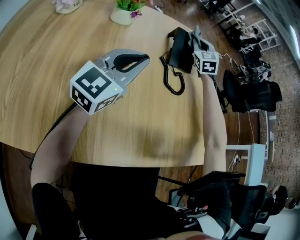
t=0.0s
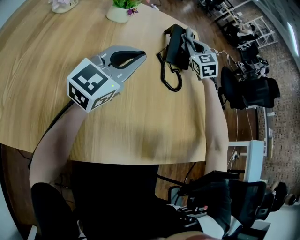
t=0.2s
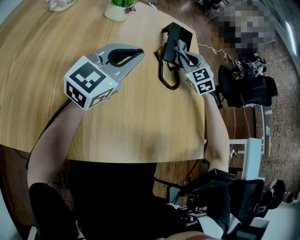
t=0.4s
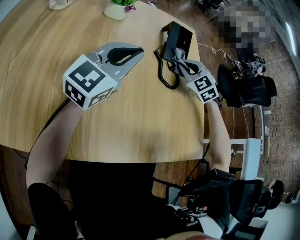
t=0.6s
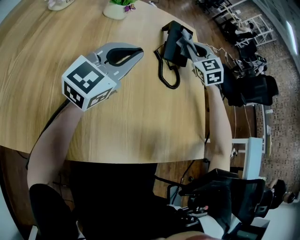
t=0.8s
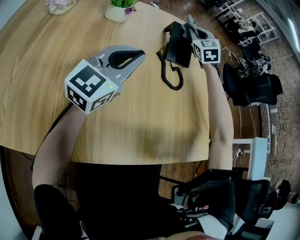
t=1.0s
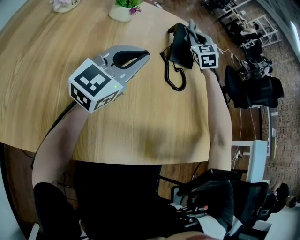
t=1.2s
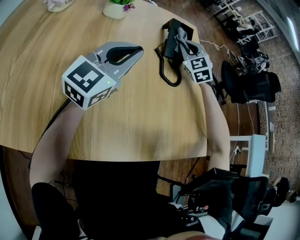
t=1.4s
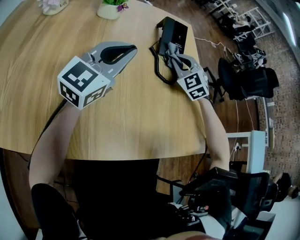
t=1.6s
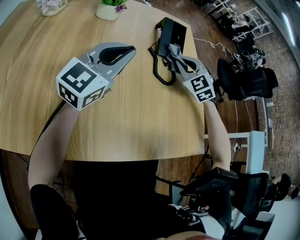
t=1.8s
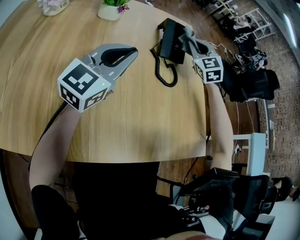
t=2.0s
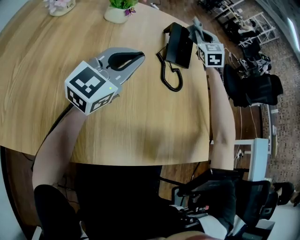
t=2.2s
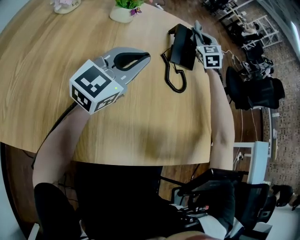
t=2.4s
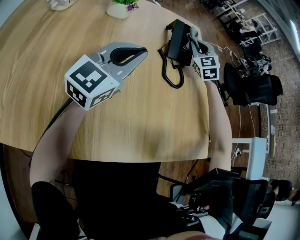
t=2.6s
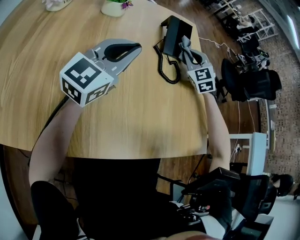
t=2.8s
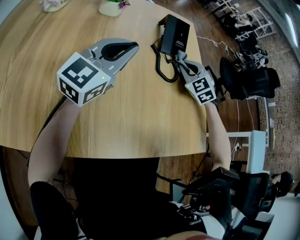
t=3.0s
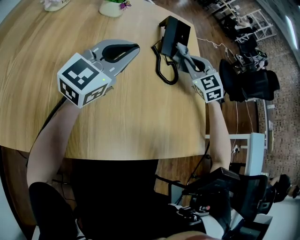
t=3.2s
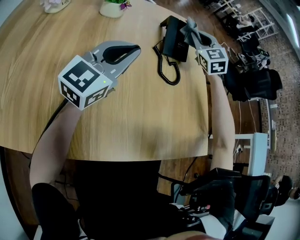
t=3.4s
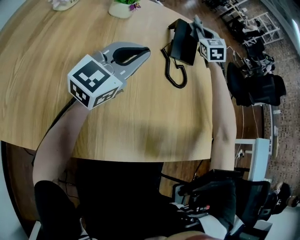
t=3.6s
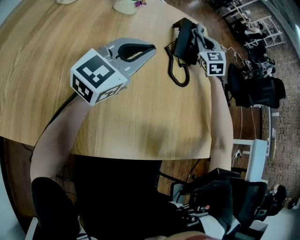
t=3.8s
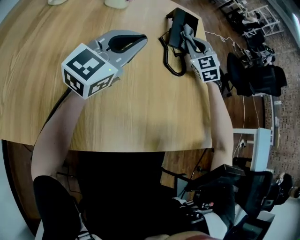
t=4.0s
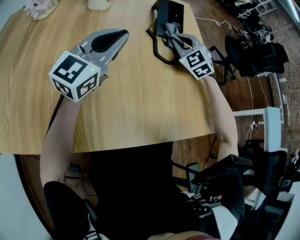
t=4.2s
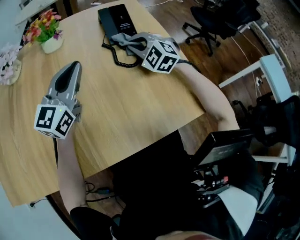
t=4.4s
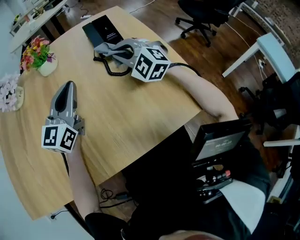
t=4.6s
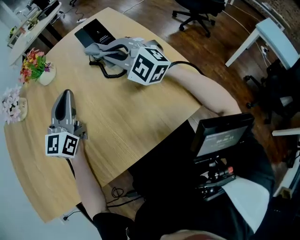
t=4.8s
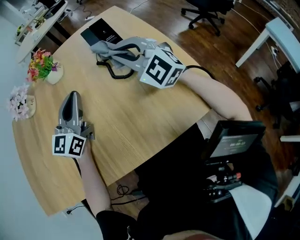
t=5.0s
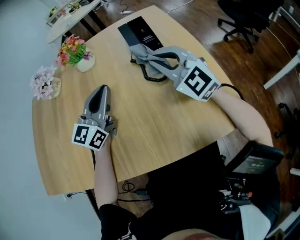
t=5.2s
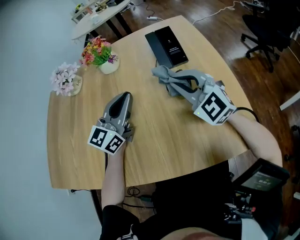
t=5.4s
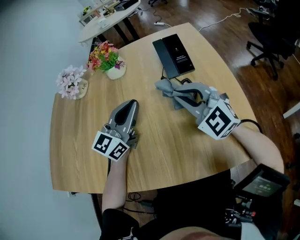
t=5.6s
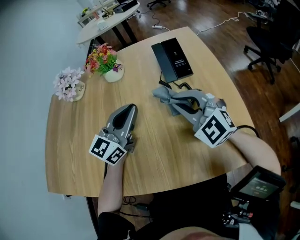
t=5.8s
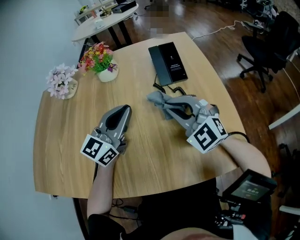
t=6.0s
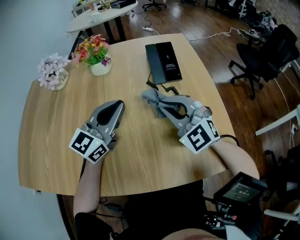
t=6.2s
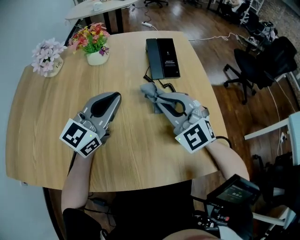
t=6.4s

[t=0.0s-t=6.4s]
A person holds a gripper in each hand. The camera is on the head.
t=0.0s to t=1.6s: The right gripper moves forward and backward over some 15 cm, changing direction 2 times, and swivels roughly 30 degrees.
t=1.6s to t=3.2s: The right gripper travels forward and back again, some 15 cm each way.
t=3.2s to t=4.8s: The right gripper is displaced to the left by about 5 cm, reaches approximately 15 cm forward, then returns, and turns by approximately 20 degrees.
t=4.8s to t=6.4s: The right gripper travels backward by about 5 cm.

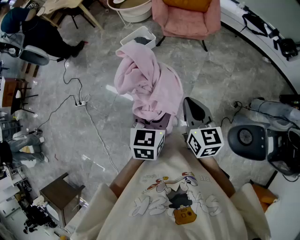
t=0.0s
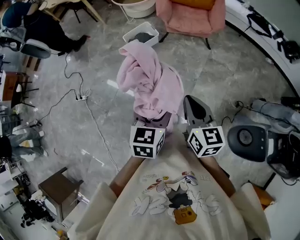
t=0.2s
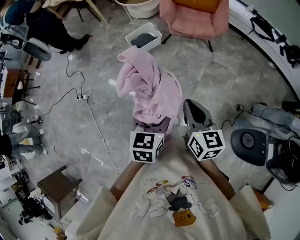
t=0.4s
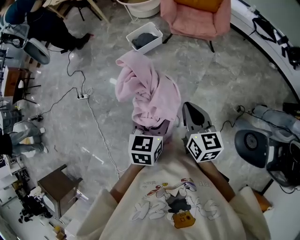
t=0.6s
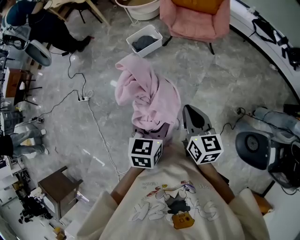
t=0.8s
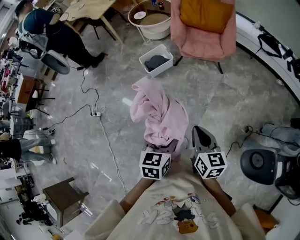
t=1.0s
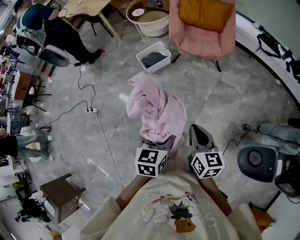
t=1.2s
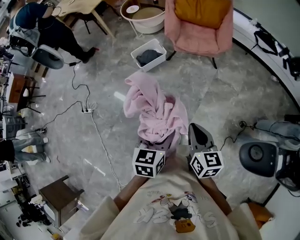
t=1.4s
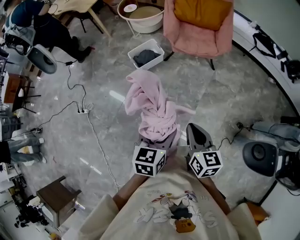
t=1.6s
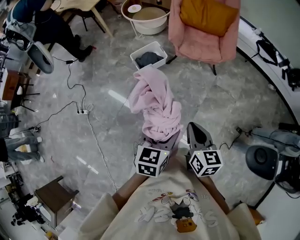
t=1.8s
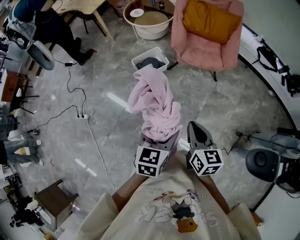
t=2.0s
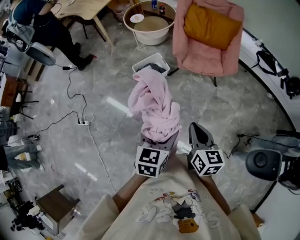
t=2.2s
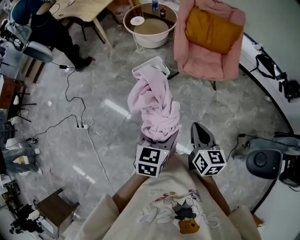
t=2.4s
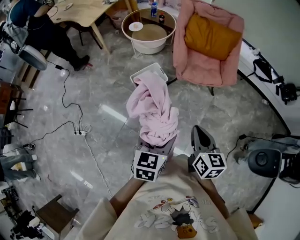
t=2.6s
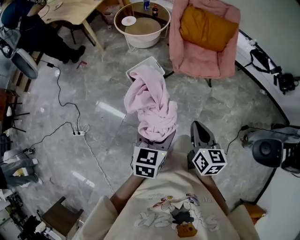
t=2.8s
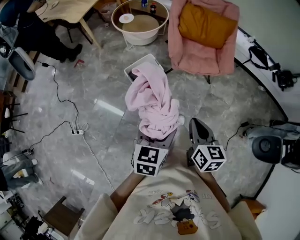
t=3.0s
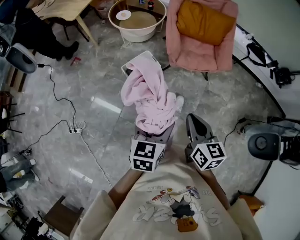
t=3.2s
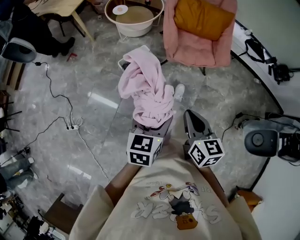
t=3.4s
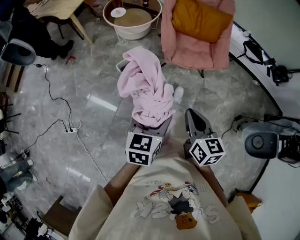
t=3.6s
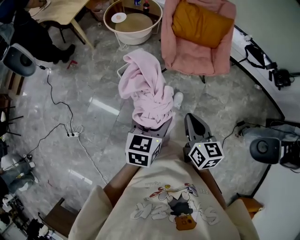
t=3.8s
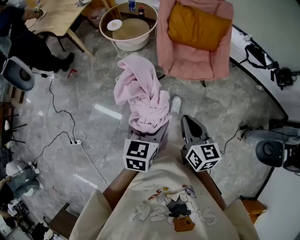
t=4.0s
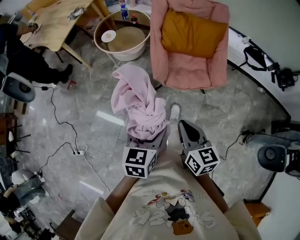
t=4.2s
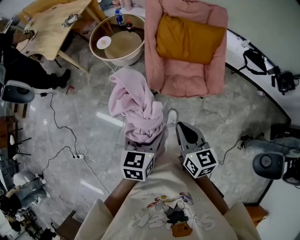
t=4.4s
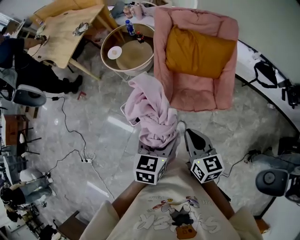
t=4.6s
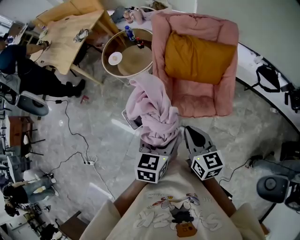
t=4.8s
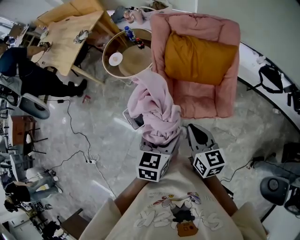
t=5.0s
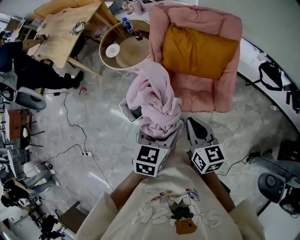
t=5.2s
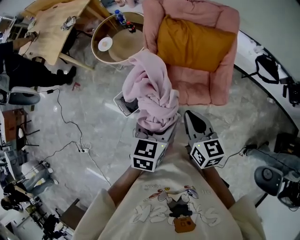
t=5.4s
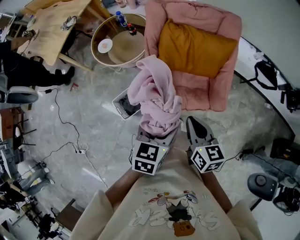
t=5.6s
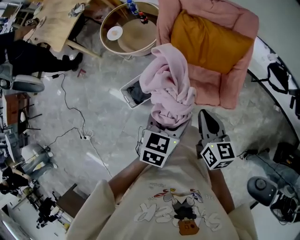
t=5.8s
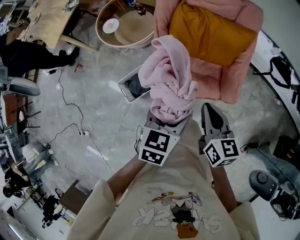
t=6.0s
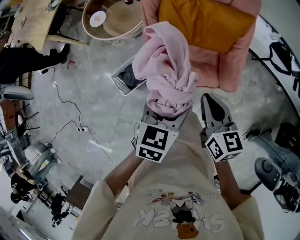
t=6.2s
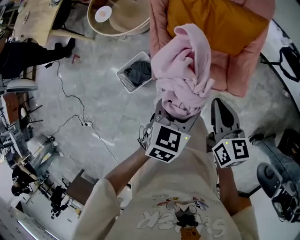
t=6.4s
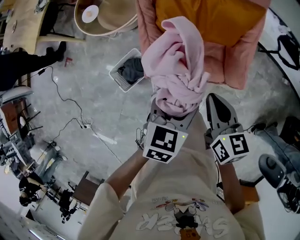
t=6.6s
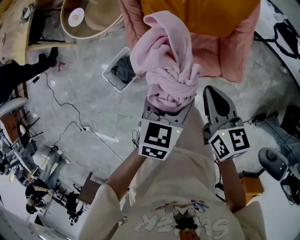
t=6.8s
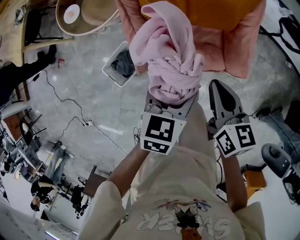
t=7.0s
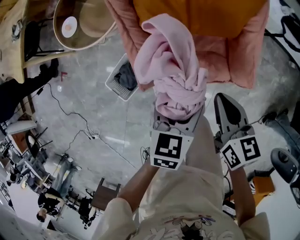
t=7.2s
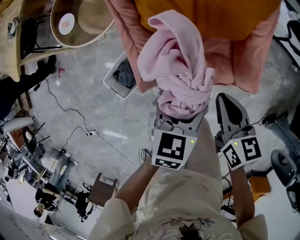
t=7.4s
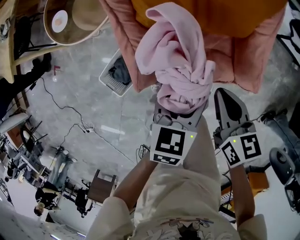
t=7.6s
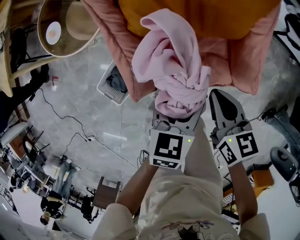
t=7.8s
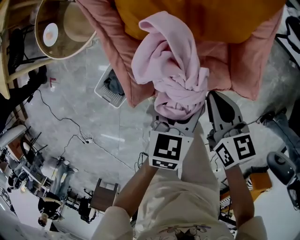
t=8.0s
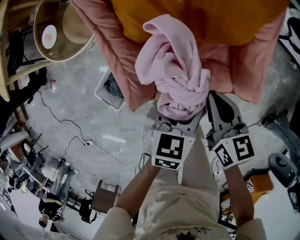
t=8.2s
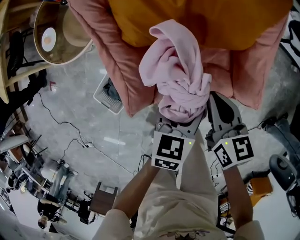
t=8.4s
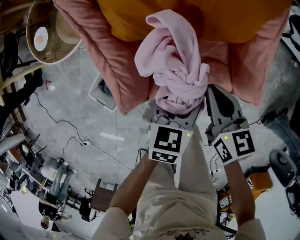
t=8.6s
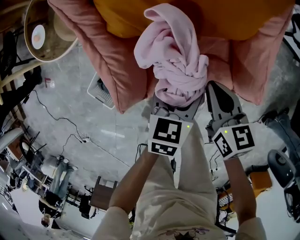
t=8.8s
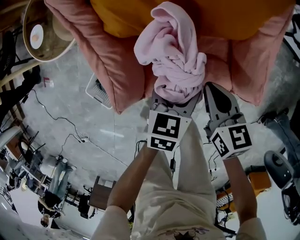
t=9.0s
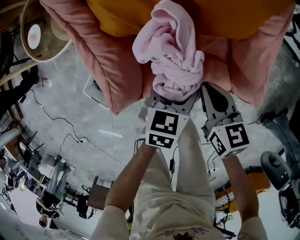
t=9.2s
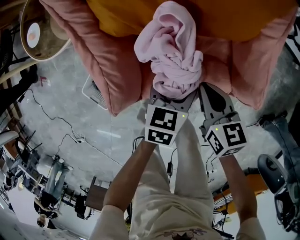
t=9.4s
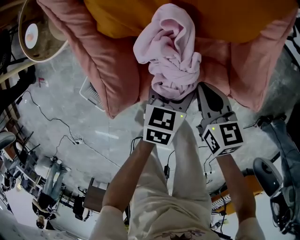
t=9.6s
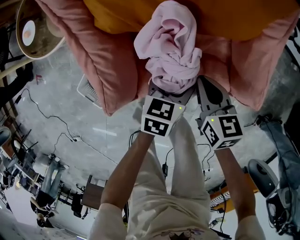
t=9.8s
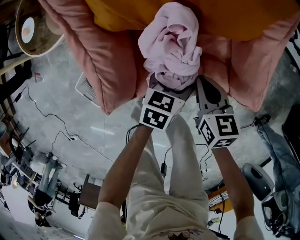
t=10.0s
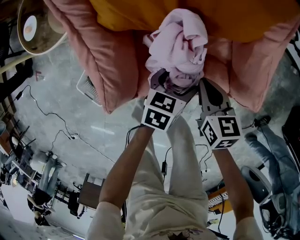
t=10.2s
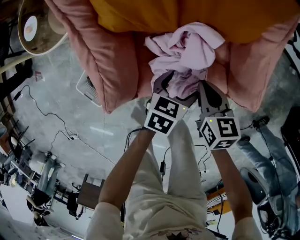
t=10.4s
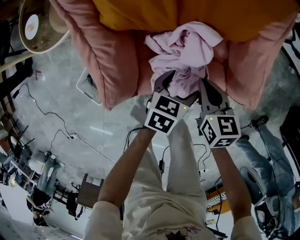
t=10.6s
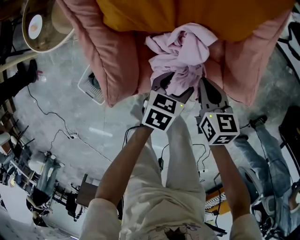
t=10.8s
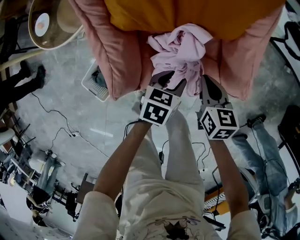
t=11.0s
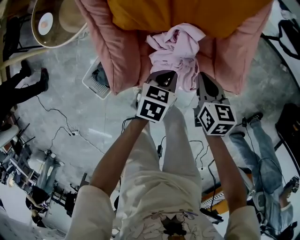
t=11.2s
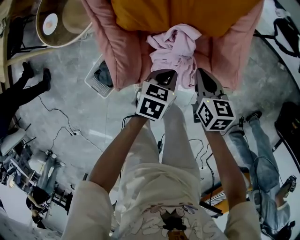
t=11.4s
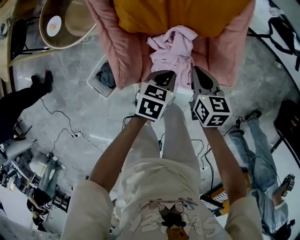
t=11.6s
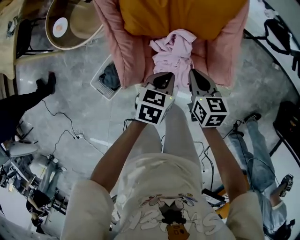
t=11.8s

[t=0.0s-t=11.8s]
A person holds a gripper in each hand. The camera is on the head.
t=0.0s to t=1.4s: The grippers make only small movements.
t=1.4s to t=3.0s: The grippers both shift forward and to the left by approximately 30 cm.
t=3.0s to t=4.4s: The grippers both shift forward by approximately 25 cm.
t=4.4s to t=6.0s: Both grippers move forward and to the right, some 25 cm.
t=6.0s to t=7.4s: Both grippers move downward and forward, about 25 cm.
t=7.4s to t=8.8s: Both grippers move downward, roughly 15 cm.
t=8.8s to t=10.4s: Both grippers move downward, approximately 10 cm.
t=10.4s to t=11.8s: The grippers both shift upward by approximately 20 cm. The left gripper closes.

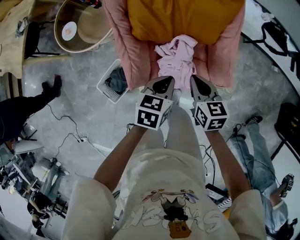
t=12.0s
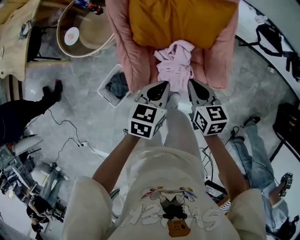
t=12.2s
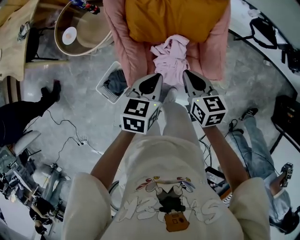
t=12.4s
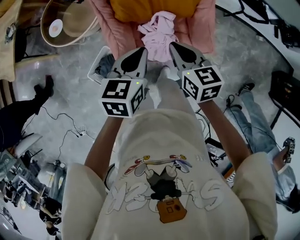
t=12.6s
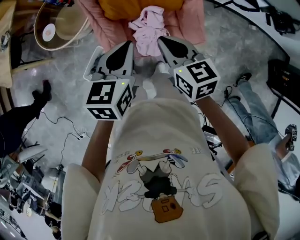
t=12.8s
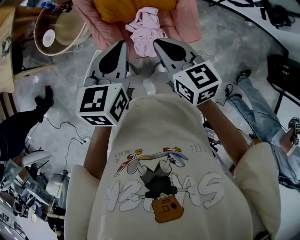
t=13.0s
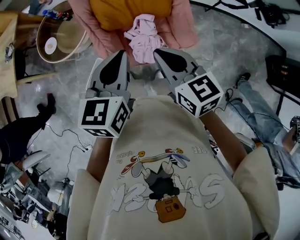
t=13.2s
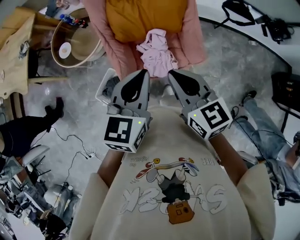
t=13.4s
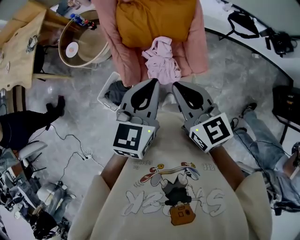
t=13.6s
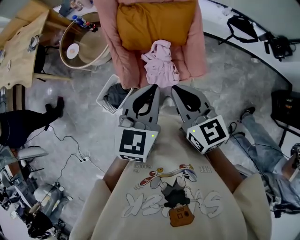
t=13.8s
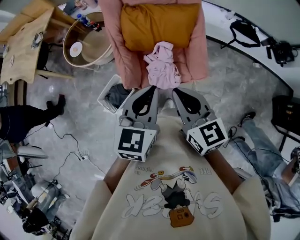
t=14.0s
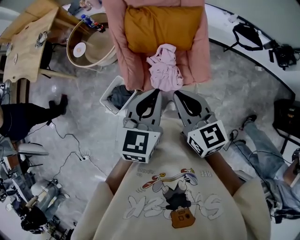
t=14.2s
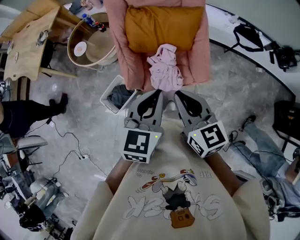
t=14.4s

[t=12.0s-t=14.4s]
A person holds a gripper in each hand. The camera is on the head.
t=12.0s to t=13.2s: Both grippers travel together upward, about 25 cm. The left gripper changes its angle by approximately 20 degrees.
t=13.2s to t=14.4s: The left gripper heads backward and to the right, covering roughly 10 cm. Meanwhile the right gripper travels backward by approximately 5 cm.

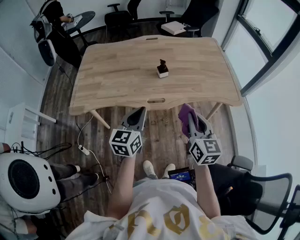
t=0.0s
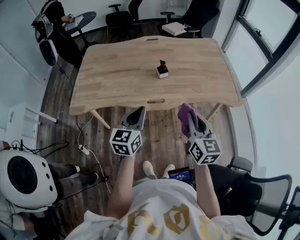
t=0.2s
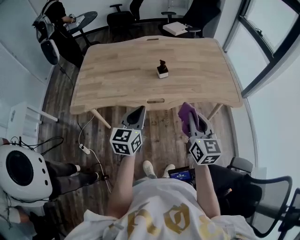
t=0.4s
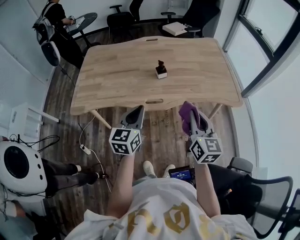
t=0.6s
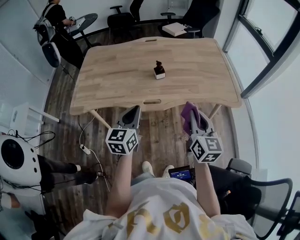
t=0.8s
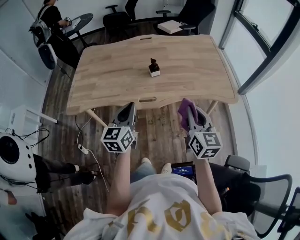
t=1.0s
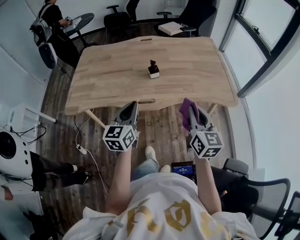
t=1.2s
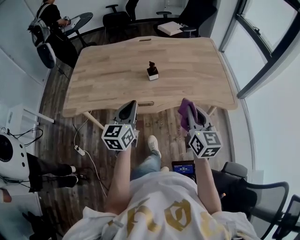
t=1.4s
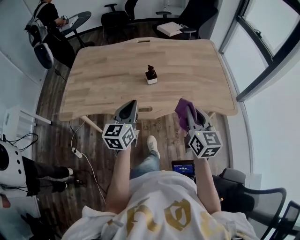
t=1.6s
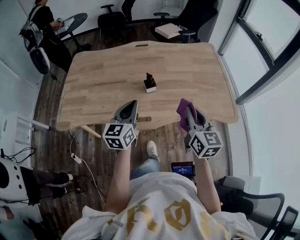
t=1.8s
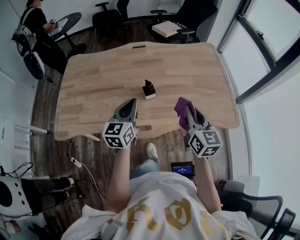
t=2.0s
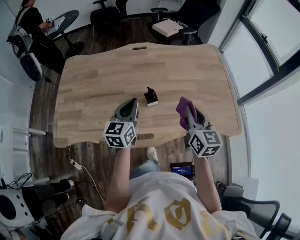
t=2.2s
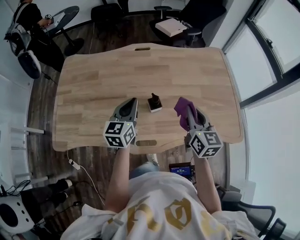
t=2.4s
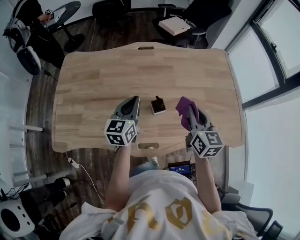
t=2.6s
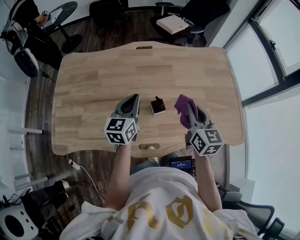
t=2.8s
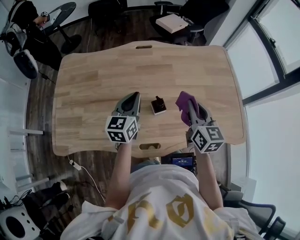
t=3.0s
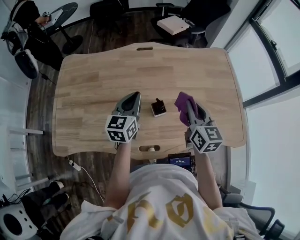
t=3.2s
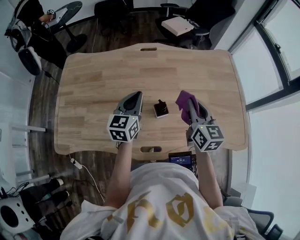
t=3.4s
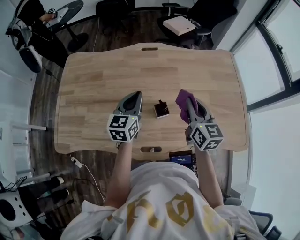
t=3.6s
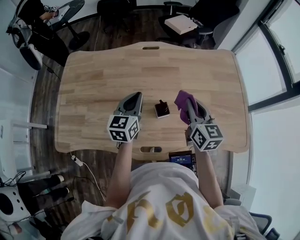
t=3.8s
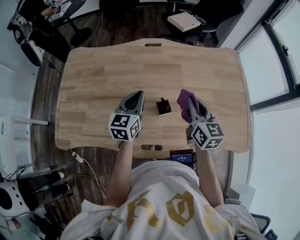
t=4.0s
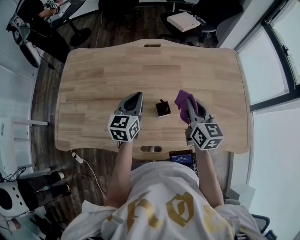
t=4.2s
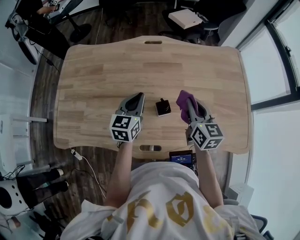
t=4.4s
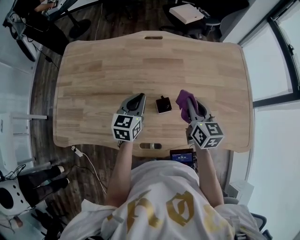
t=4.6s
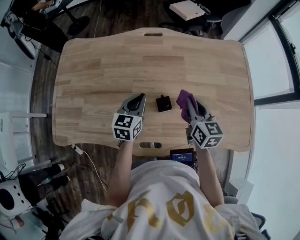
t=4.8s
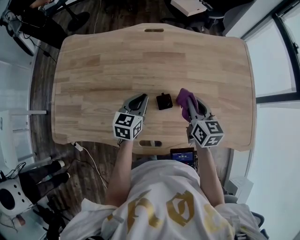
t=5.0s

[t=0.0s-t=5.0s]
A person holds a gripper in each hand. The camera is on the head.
t=0.0s to t=1.6s: The right gripper heads forward and to the right, covering roughly 10 cm; the left gripper is displaced forward by some 10 cm.
t=1.6s to t=3.4s: Both grippers travel together forward, roughly 30 cm.
t=3.4s to t=5.0s: Both grippers travel together downward, roughly 10 cm.
